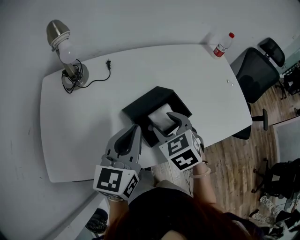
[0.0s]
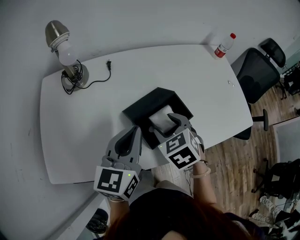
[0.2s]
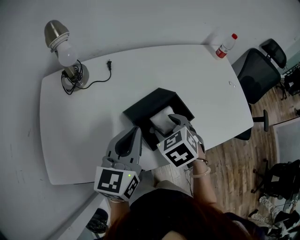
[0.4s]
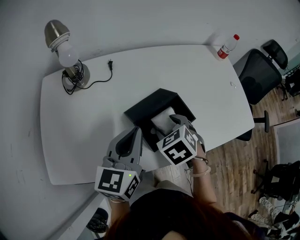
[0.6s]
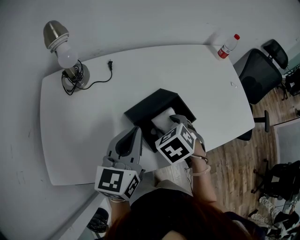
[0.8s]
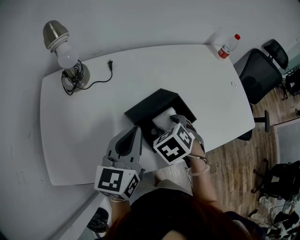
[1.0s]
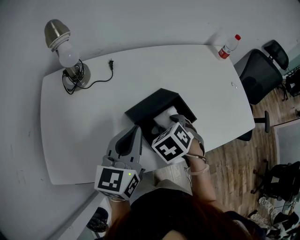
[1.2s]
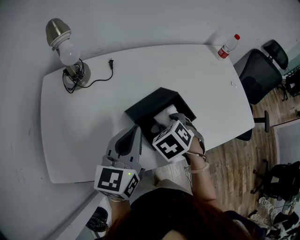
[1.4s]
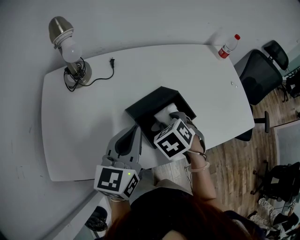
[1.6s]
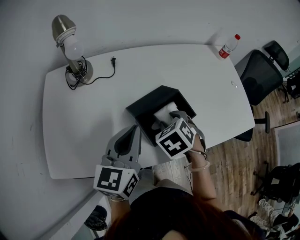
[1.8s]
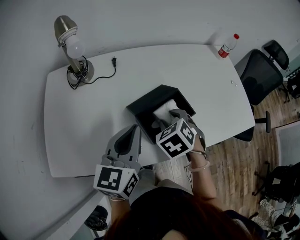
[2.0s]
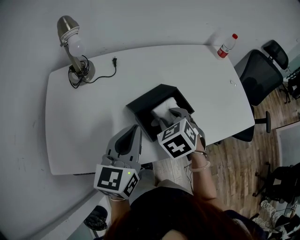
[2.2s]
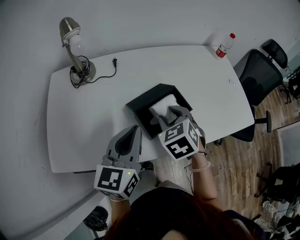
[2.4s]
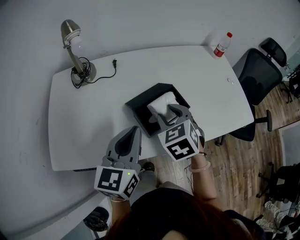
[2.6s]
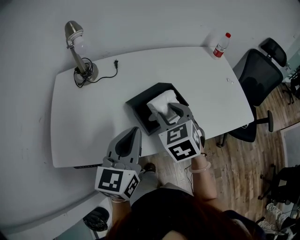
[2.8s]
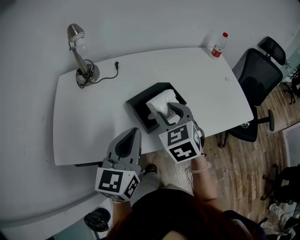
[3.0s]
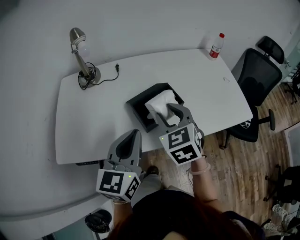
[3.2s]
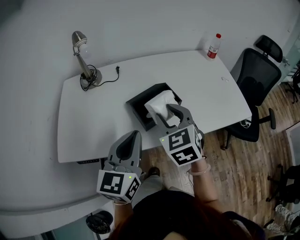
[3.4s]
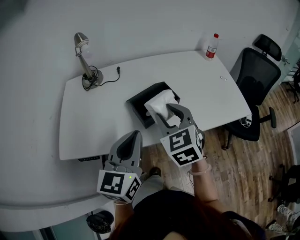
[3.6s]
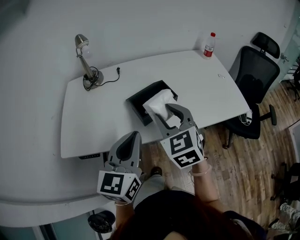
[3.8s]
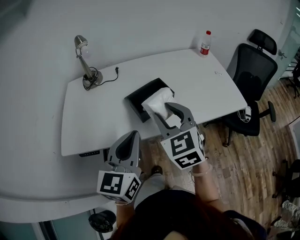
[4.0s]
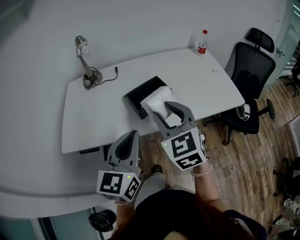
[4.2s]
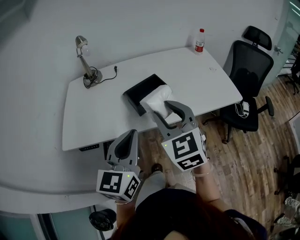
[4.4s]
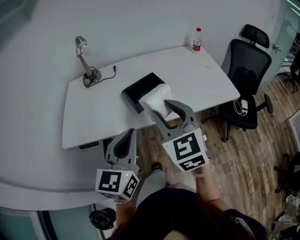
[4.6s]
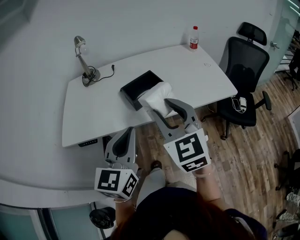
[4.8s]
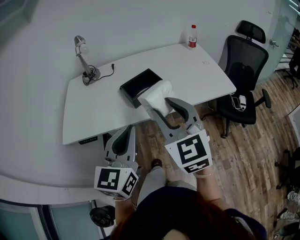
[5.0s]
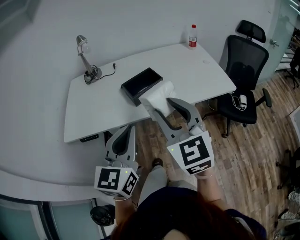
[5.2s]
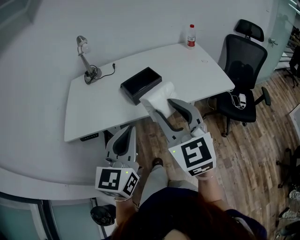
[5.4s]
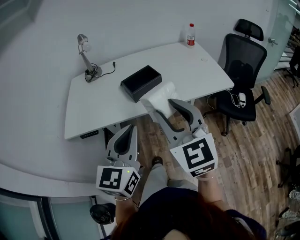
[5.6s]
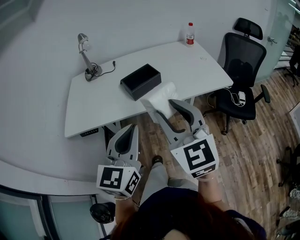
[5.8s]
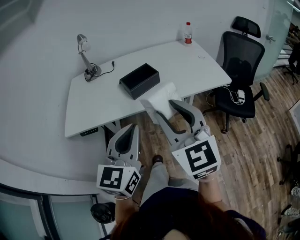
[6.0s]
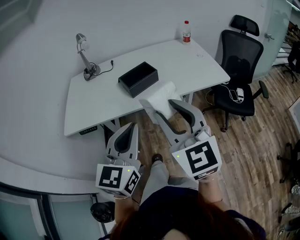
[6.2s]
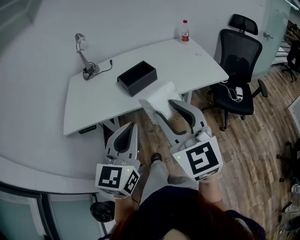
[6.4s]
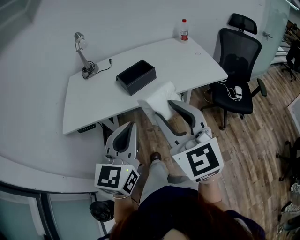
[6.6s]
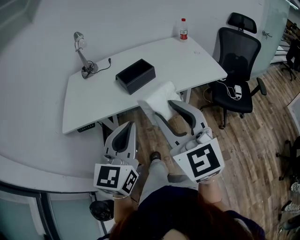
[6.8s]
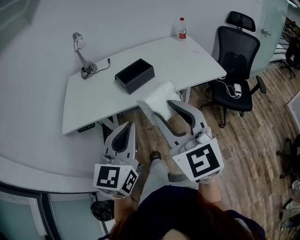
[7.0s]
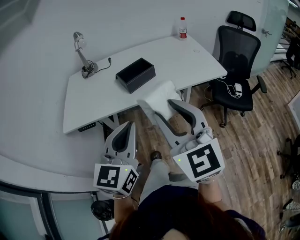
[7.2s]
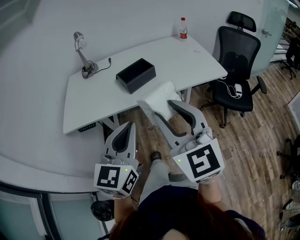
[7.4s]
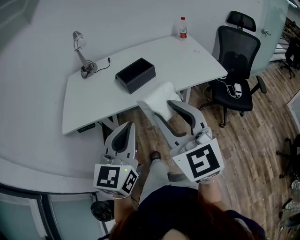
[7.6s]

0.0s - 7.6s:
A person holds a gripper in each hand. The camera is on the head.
0.0s - 1.6s: The right gripper changes place by approximately 5 cm.
1.6s - 3.0s: The left gripper is displaced backward by some 10 cm, while the right gripper is displaced upward by some 10 cm, and tips its fingers upward by about 30 degrees.
3.0s - 4.6s: The left gripper is displaced backward by some 15 cm; the right gripper goes some 20 cm backward and upward, and turns by approximately 20 degrees.
4.6s - 6.0s: The two grippers go approximately 10 cm backward.
6.0s - 7.6s: The grippers stay close to where they were, moving slightly.

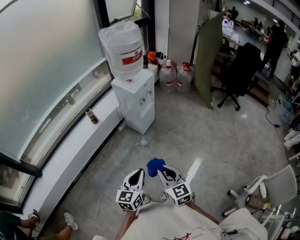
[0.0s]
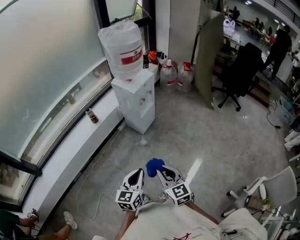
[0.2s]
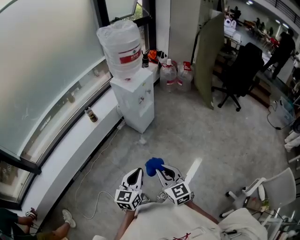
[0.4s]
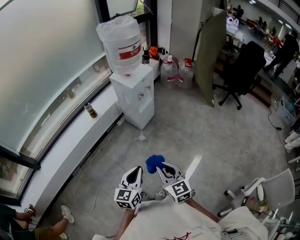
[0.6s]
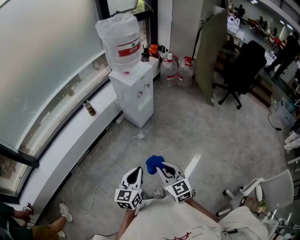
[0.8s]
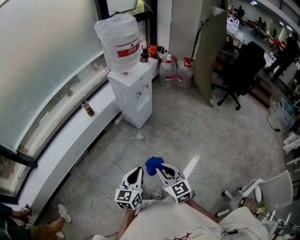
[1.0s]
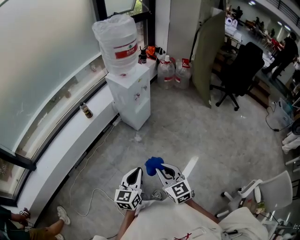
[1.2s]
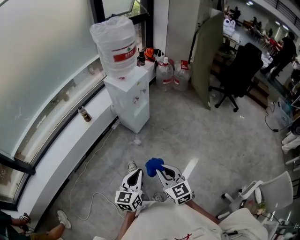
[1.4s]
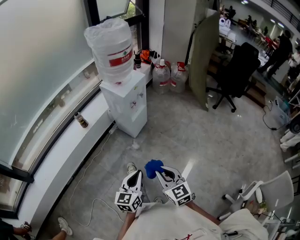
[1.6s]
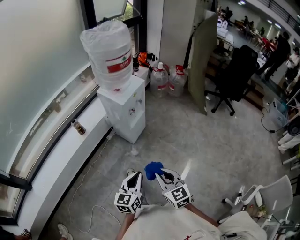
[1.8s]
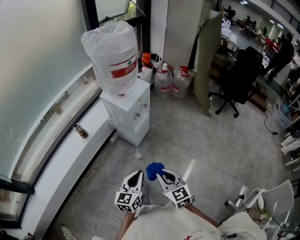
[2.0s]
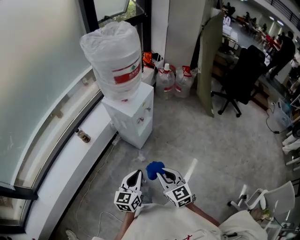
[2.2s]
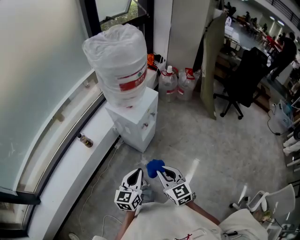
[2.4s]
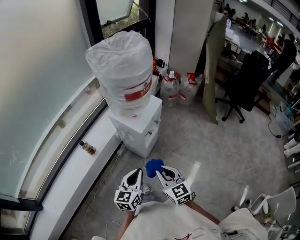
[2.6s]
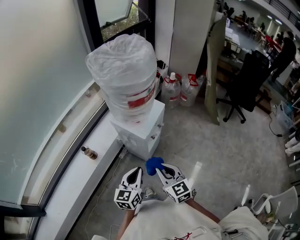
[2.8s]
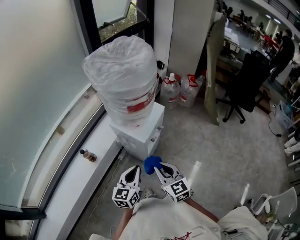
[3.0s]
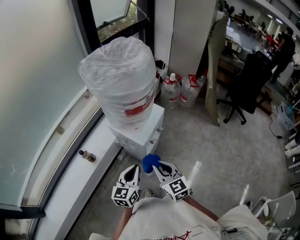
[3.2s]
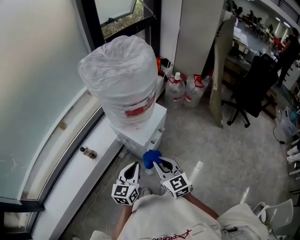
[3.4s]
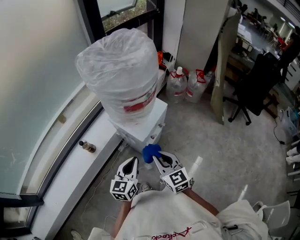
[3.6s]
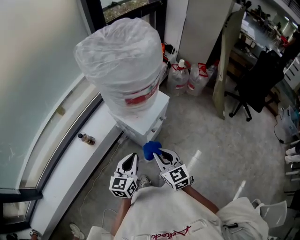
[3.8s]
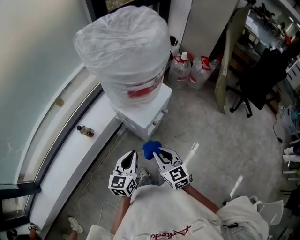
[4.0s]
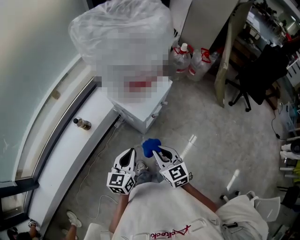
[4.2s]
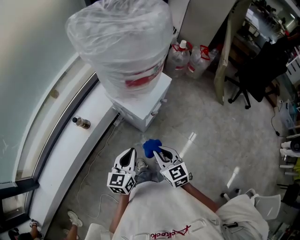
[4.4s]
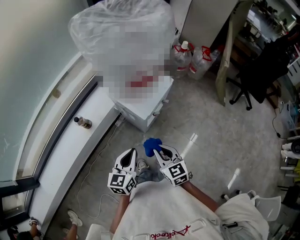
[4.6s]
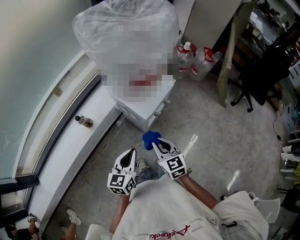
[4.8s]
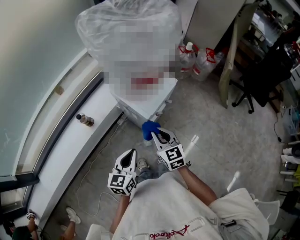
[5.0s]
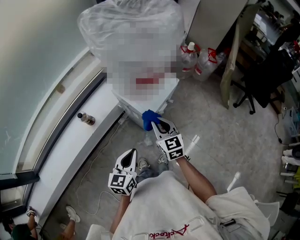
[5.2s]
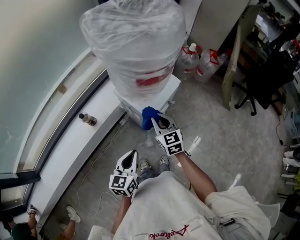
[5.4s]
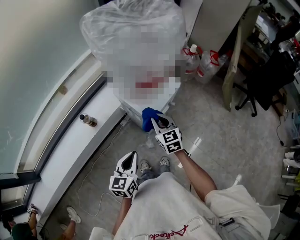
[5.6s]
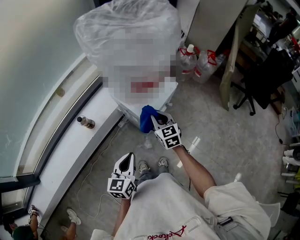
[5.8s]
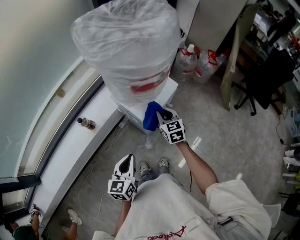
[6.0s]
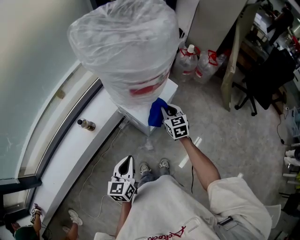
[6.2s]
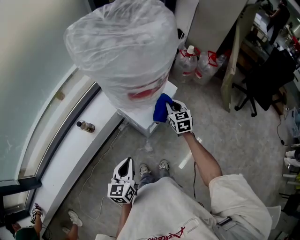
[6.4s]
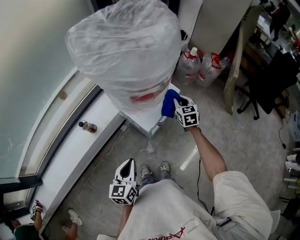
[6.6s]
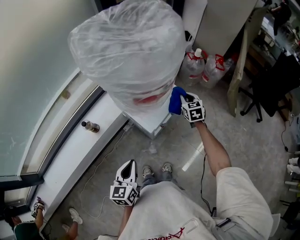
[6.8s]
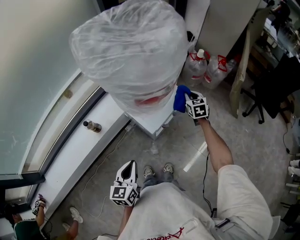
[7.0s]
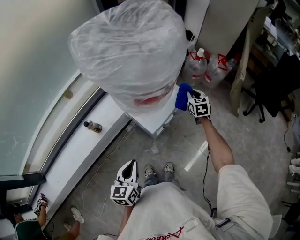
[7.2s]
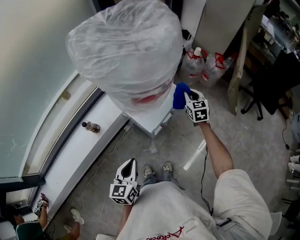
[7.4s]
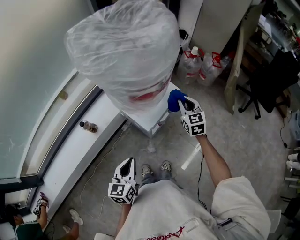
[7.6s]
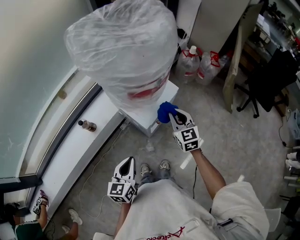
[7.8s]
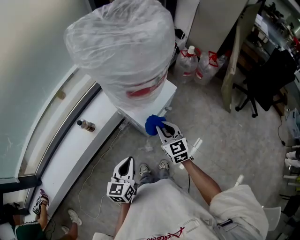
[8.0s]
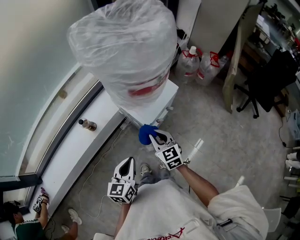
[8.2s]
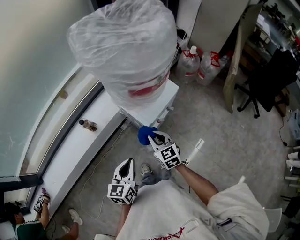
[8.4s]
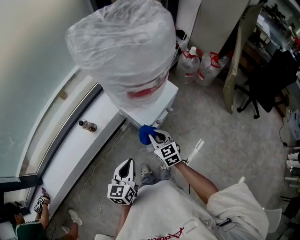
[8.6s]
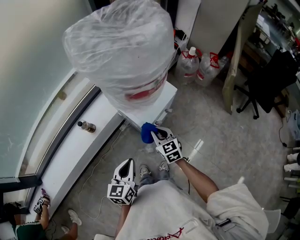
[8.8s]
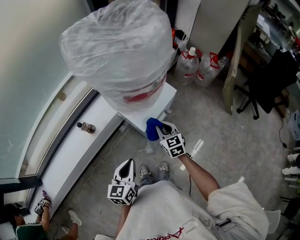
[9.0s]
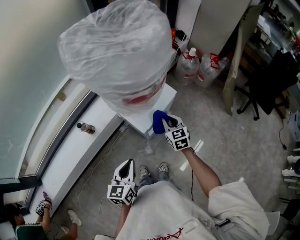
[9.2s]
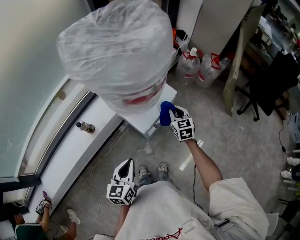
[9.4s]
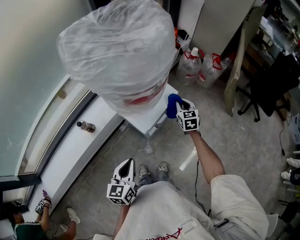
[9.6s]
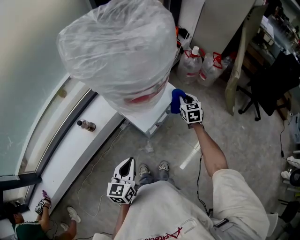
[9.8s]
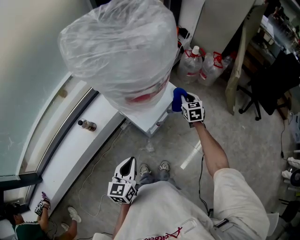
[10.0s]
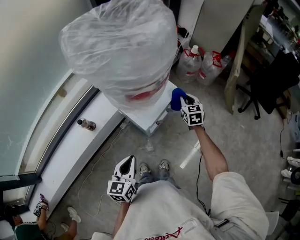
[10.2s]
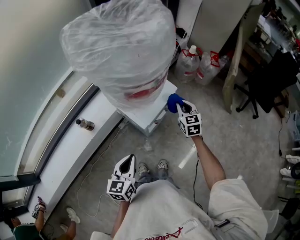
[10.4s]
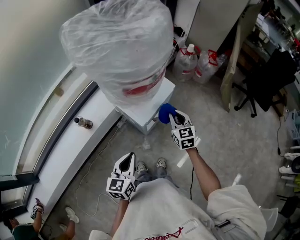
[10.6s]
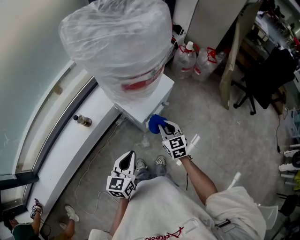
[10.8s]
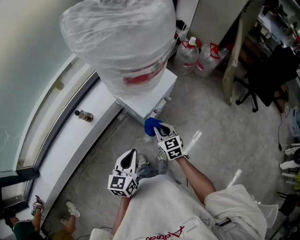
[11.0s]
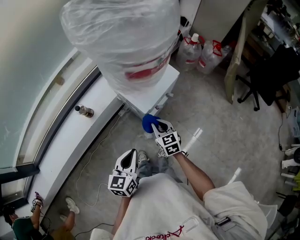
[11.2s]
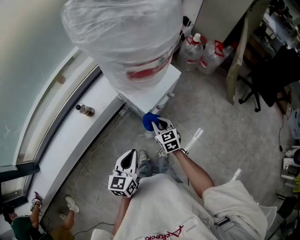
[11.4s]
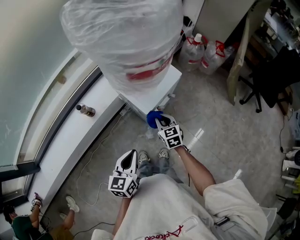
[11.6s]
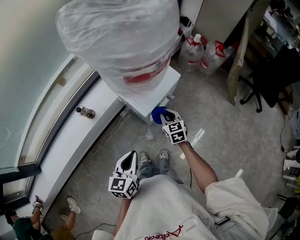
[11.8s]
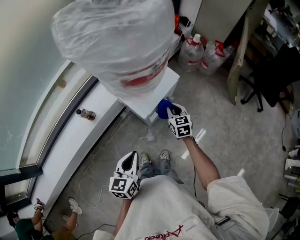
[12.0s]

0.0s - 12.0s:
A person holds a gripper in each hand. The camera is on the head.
0.0s - 1.6s: The two grippers go some 10 cm forward and to the right.
1.6s - 3.0s: Both grippers are carried forward, approximately 40 cm.
3.0s - 4.4s: The right gripper moves downward, some 5 cm.
4.4s - 6.0s: The right gripper moves forward, roughly 20 cm.
6.0s - 7.6s: The right gripper moves to the right and forward, roughly 15 cm.
7.6s - 9.0s: The right gripper moves to the left, backward and downward, approximately 15 cm.
9.0s - 10.4s: The right gripper shifts approximately 15 cm to the right and forward.
10.4s - 12.0s: The right gripper is displaced downward and to the left by roughly 10 cm, and moves about 15 cm backward and comes back.

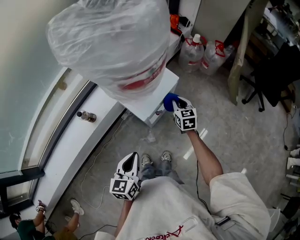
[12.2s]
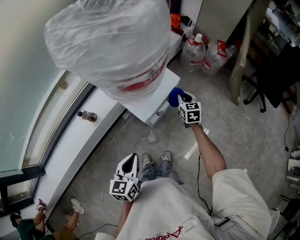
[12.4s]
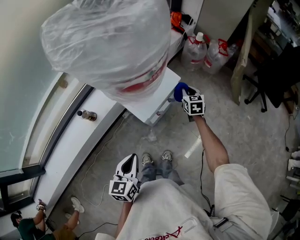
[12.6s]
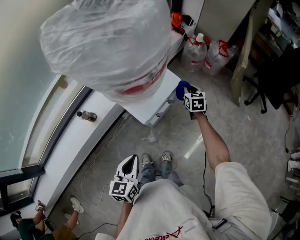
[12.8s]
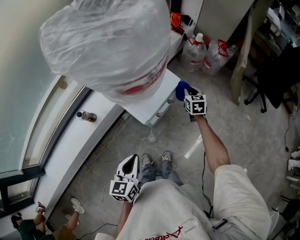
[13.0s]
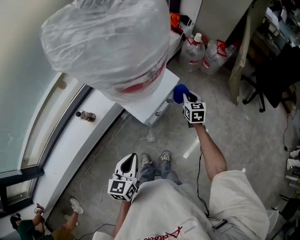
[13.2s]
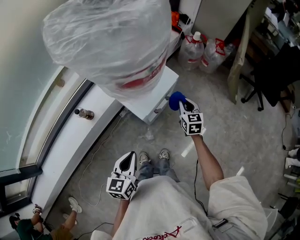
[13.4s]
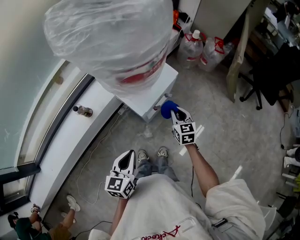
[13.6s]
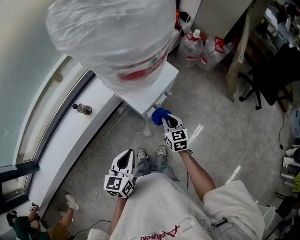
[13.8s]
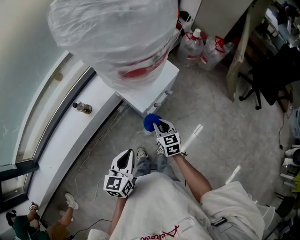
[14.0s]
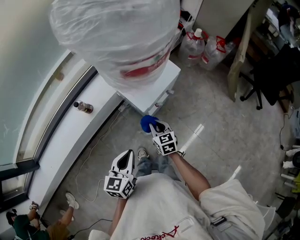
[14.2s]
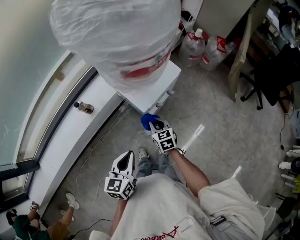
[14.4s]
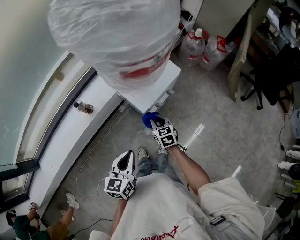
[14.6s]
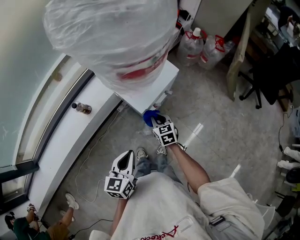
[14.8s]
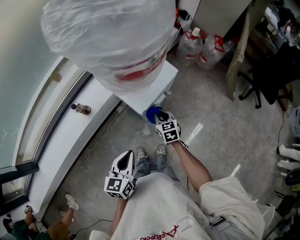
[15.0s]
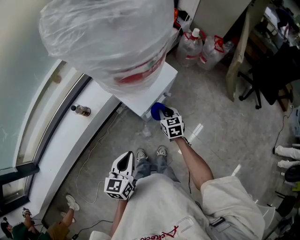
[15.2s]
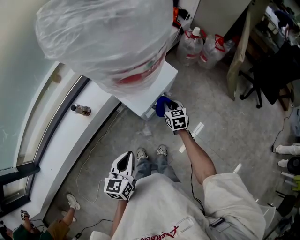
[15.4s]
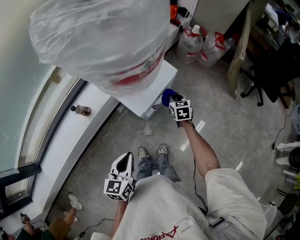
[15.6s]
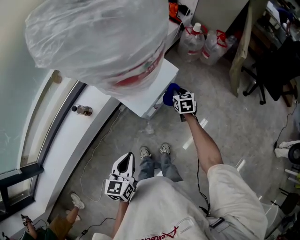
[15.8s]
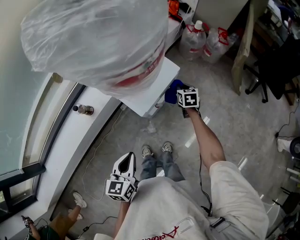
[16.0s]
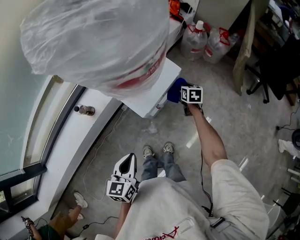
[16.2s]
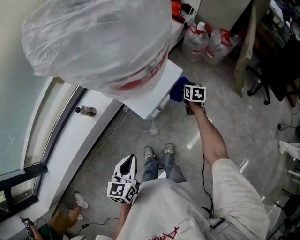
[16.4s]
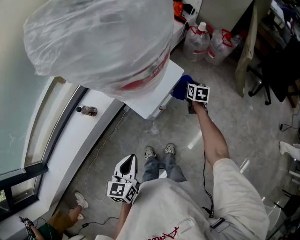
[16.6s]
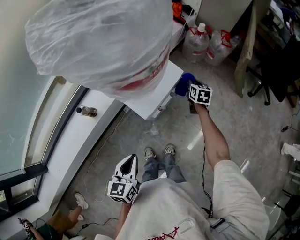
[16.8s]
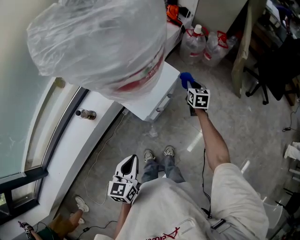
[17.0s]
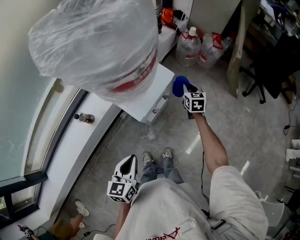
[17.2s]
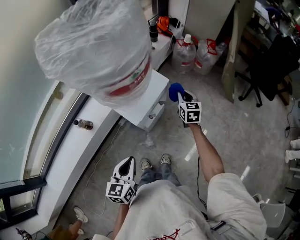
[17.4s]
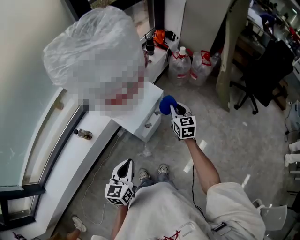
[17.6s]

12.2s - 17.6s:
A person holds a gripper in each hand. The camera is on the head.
12.2s - 13.6s: The right gripper is displaced backward by about 10 cm.
13.6s - 15.0s: The right gripper shifts approximately 10 cm to the left and downward.
15.0s - 16.2s: The right gripper shifts about 20 cm forward and to the right, and rotates roughly 20 degrees.
16.2s - 17.6s: The left gripper changes place by some 5 cm; the right gripper shifts approximately 15 cm upward, and changes its angle by some 30 degrees.
